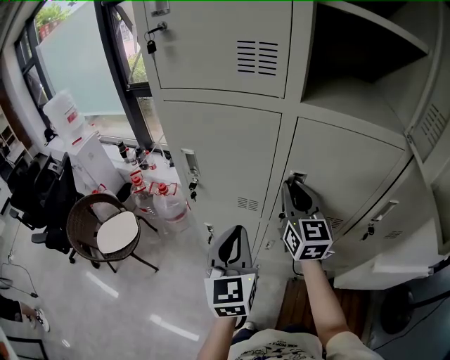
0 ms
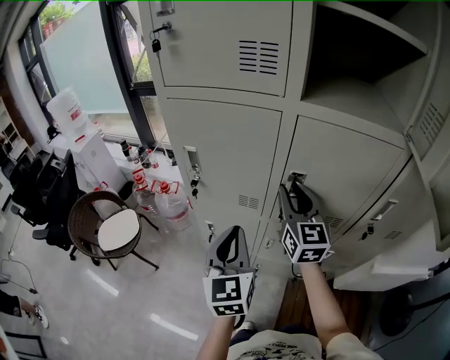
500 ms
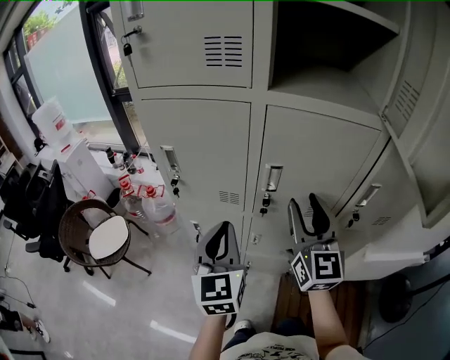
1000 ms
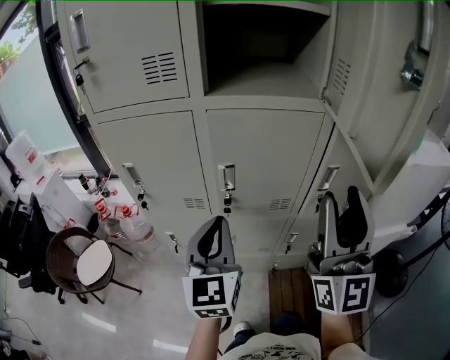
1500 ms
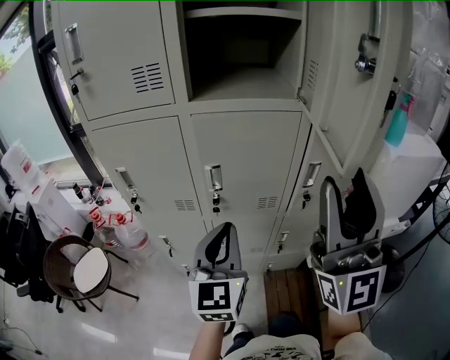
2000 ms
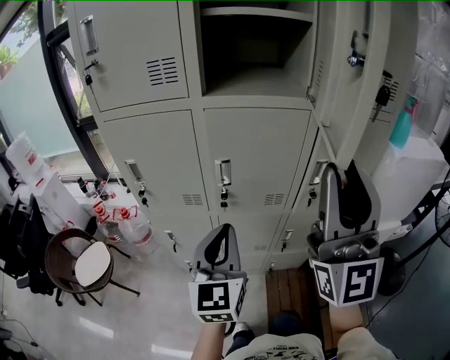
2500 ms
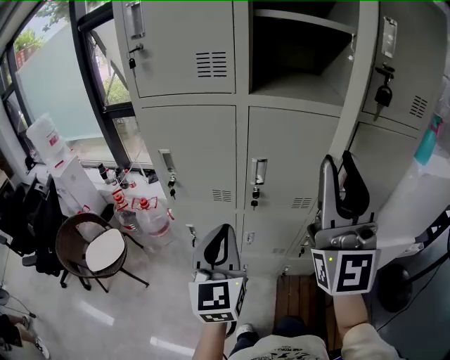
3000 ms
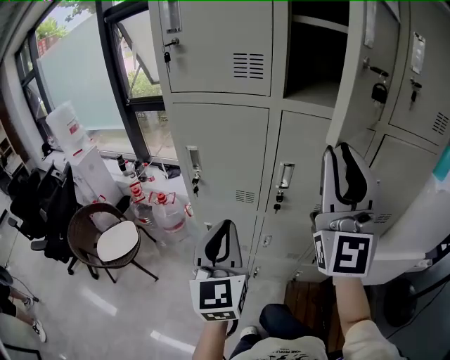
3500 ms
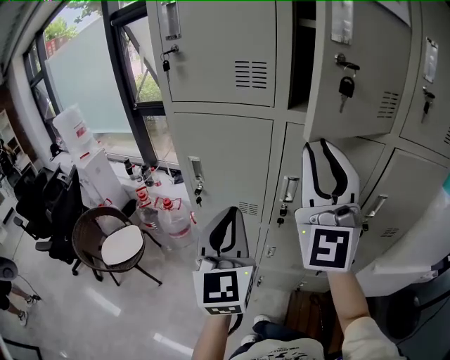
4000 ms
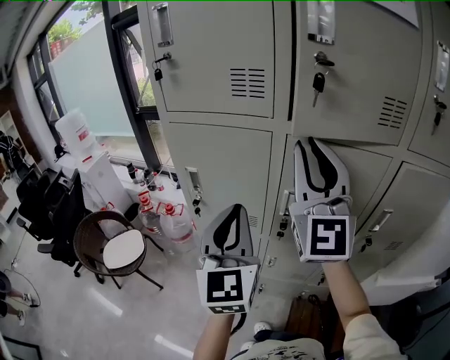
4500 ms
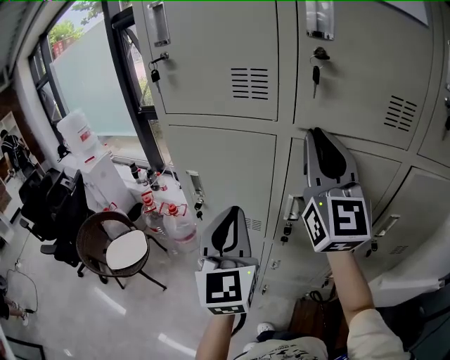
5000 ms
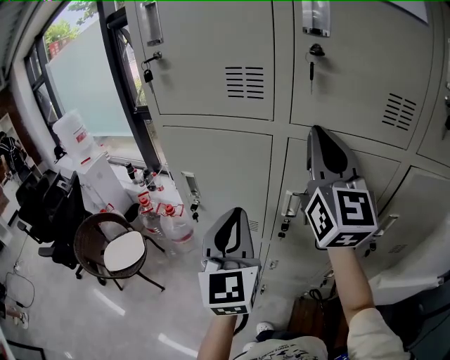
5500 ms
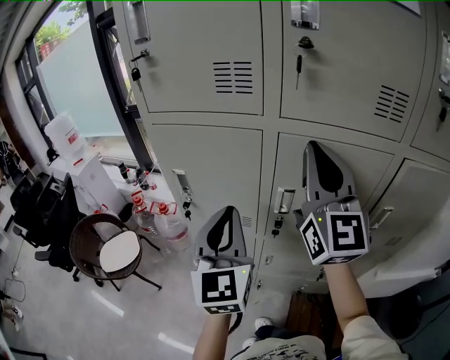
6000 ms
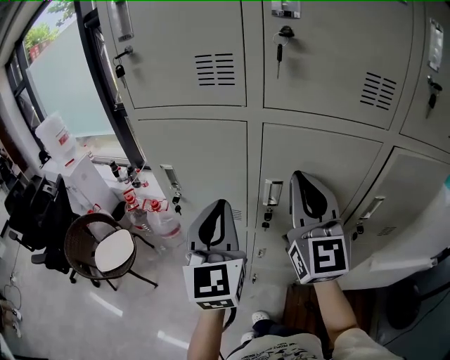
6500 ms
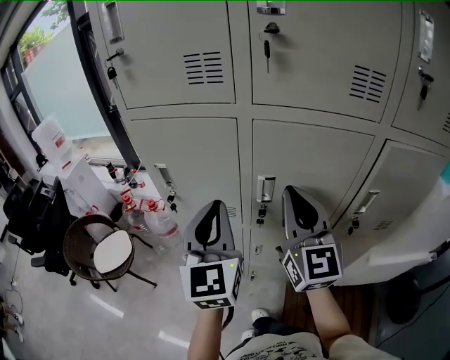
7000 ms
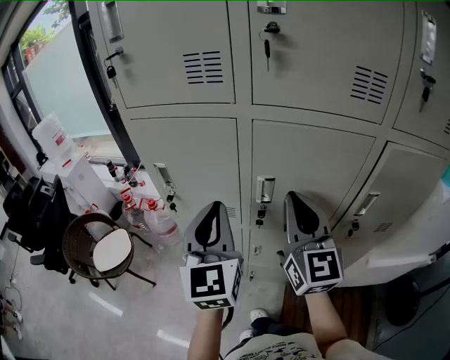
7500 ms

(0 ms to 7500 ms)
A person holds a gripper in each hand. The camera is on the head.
0 ms - 2000 ms: The left gripper is displaced to the right, backward and upward by roughly 15 cm, and swivels approximately 20 degrees. The right gripper is displaced backward, upward and to the right by about 40 cm, tilts its fingers some 40 degrees upward, and opens up.
2000 ms - 4000 ms: The right gripper travels to the left and forward by approximately 20 cm, and closes its fingers. Meanwhile the left gripper is displaced to the left by some 15 cm, and turns by some 20 degrees.
4000 ms - 5500 ms: The right gripper is displaced forward by roughly 10 cm, and changes its angle by approximately 30 degrees. The left gripper travels forward by roughly 5 cm.
5500 ms - 7500 ms: The right gripper goes about 15 cm downward and backward.

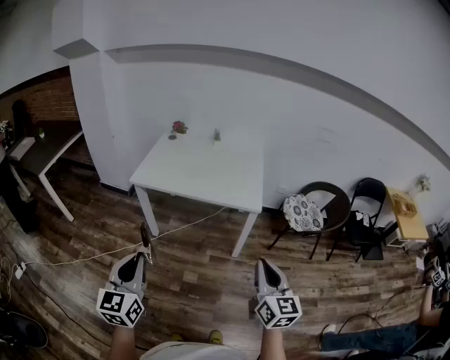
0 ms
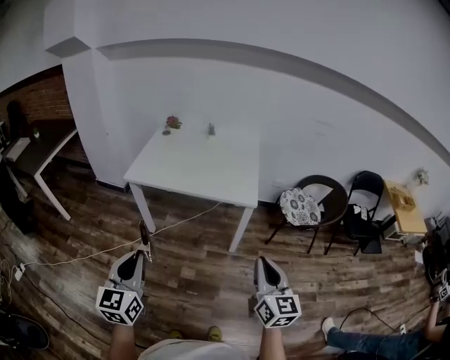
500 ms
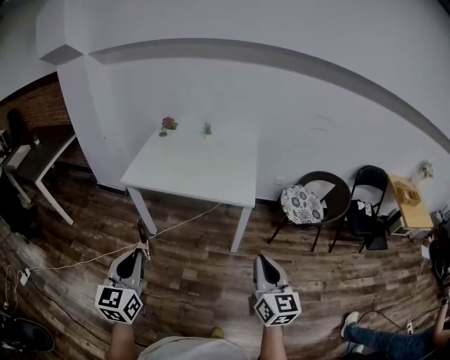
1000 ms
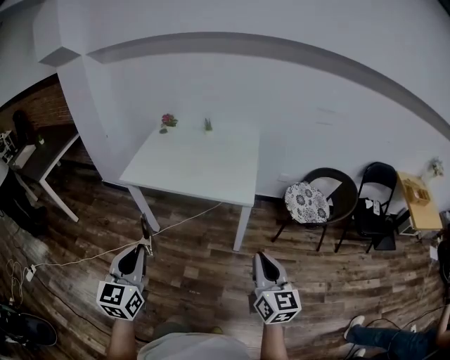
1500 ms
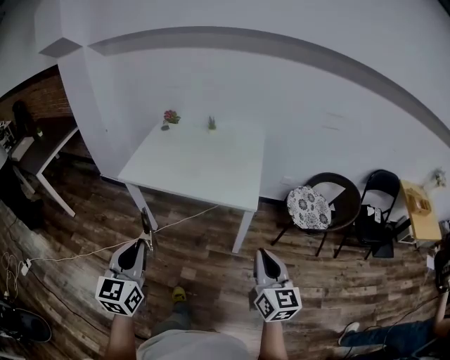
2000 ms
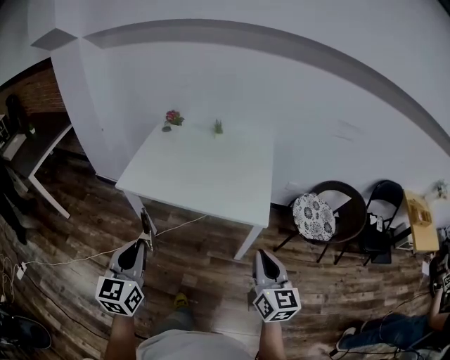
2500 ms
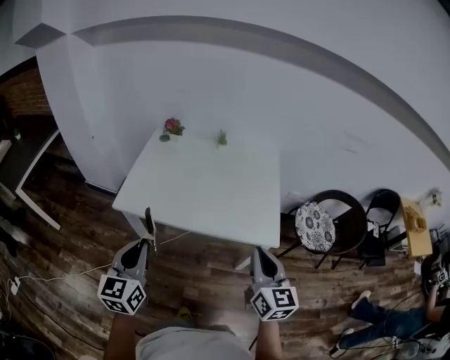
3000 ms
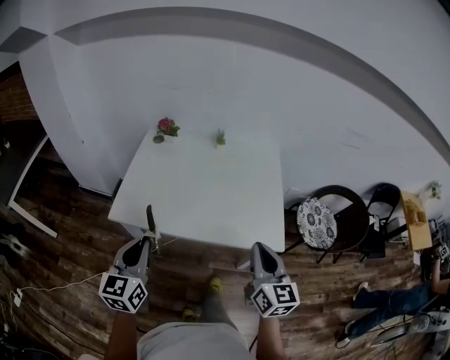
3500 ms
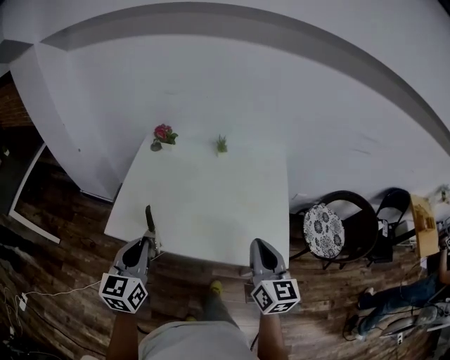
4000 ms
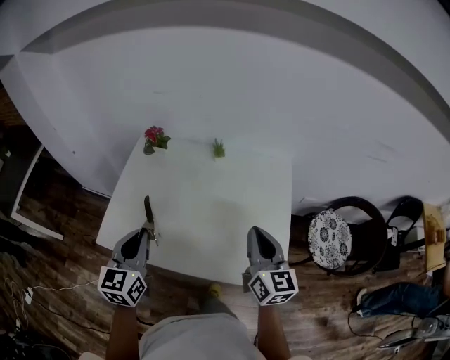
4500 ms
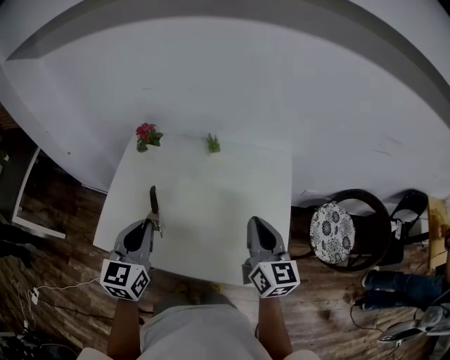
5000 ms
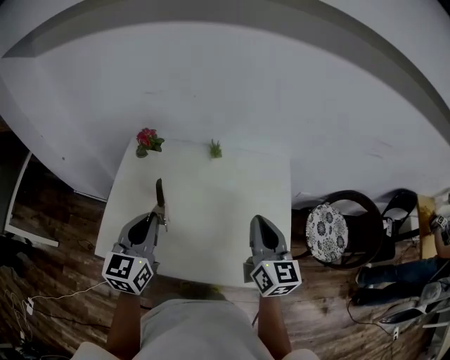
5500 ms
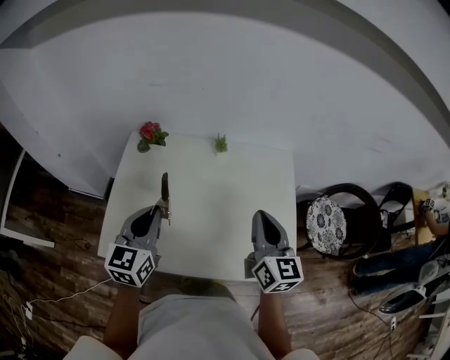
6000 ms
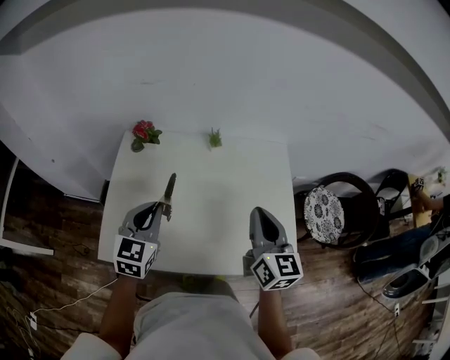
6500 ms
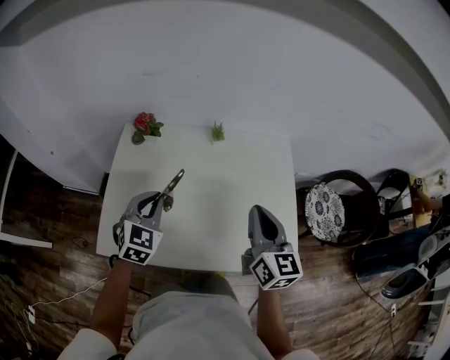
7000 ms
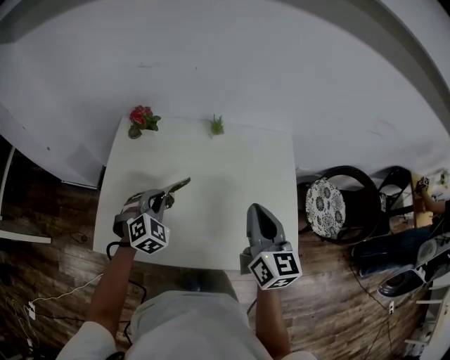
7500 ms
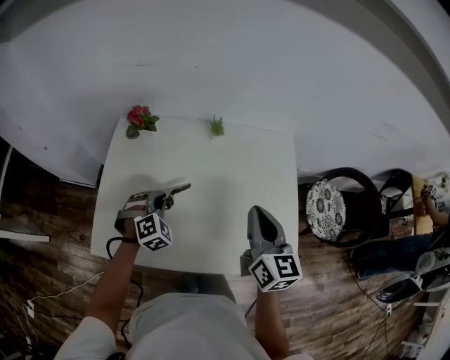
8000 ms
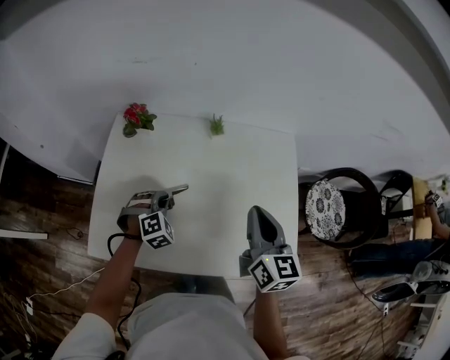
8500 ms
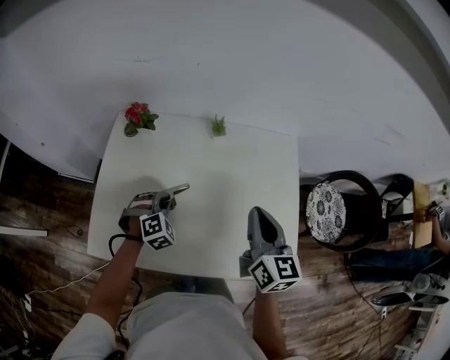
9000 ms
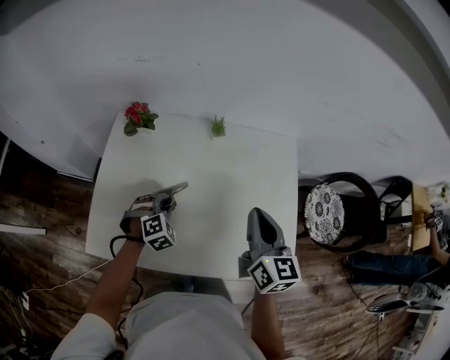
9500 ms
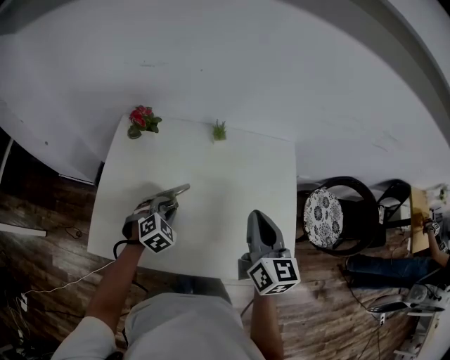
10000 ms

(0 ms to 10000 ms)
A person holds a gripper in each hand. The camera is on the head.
0 ms - 2000 ms: The two grippers go roughly 15 cm forward and to the right.
2000 ms - 4000 ms: Both grippers are carried forward, roughly 40 cm.
4000 ms - 6000 ms: The two grippers go about 20 cm forward.
6000 ms - 8000 ms: The left gripper shifts some 20 cm downward, and rotates around the line of its fingers by roughly 60 degrees, clockwise from behind.
8000 ms - 10000 ms: The left gripper opens its fingers.

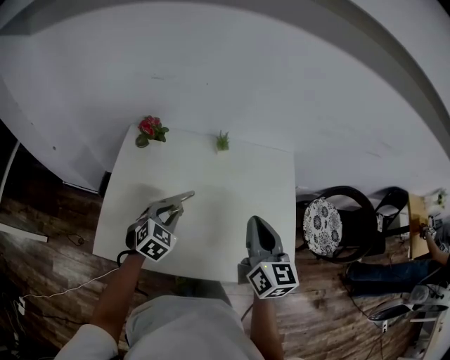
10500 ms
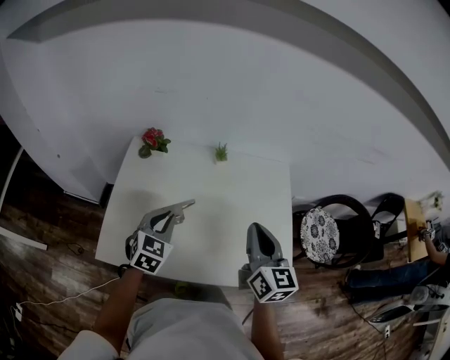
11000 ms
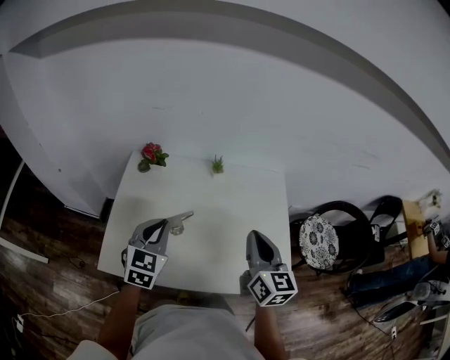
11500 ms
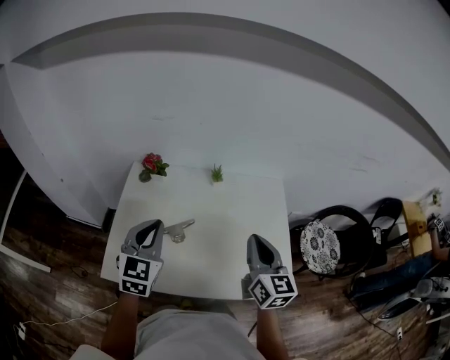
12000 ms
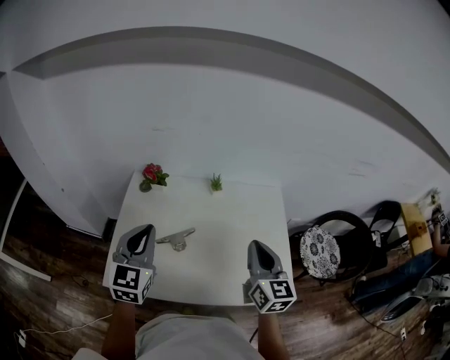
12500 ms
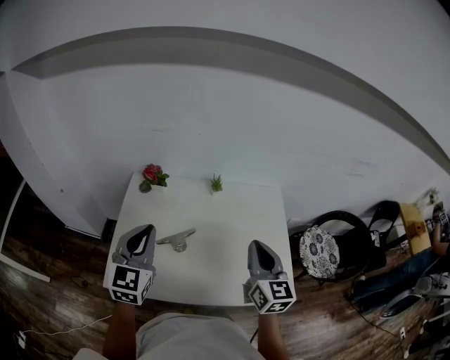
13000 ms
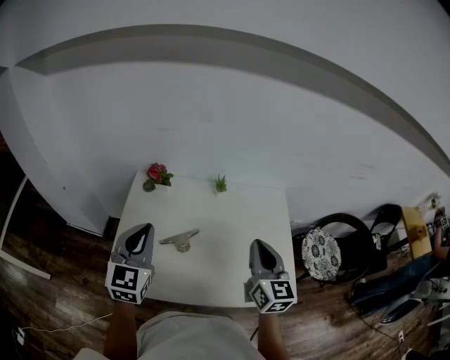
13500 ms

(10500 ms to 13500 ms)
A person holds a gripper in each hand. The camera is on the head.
10500 ms - 12000 ms: The left gripper moves upward, approximately 20 cm, and swivels approximately 30 degrees.
12000 ms - 13500 ms: The left gripper ends up roughly 5 cm from where it was.

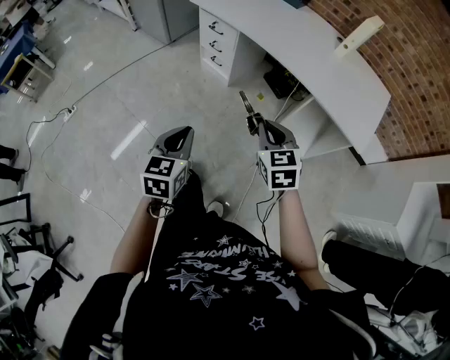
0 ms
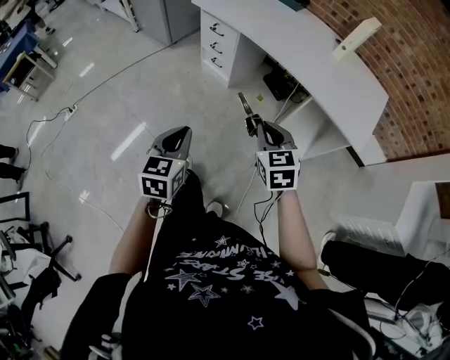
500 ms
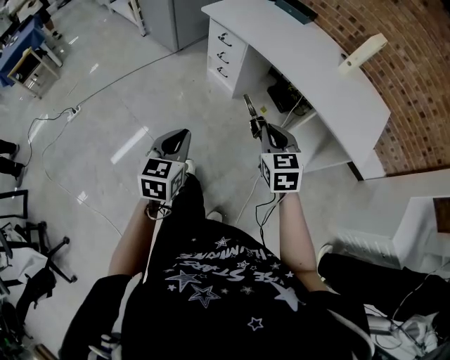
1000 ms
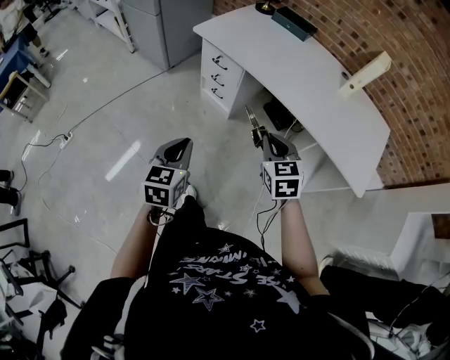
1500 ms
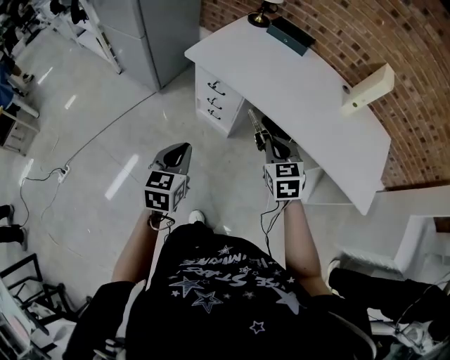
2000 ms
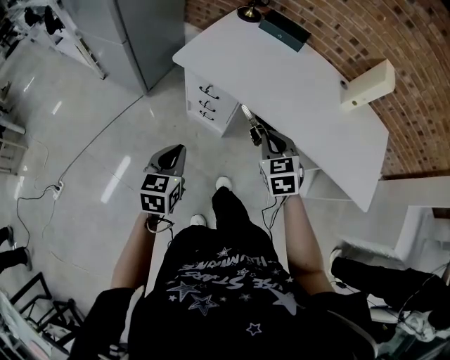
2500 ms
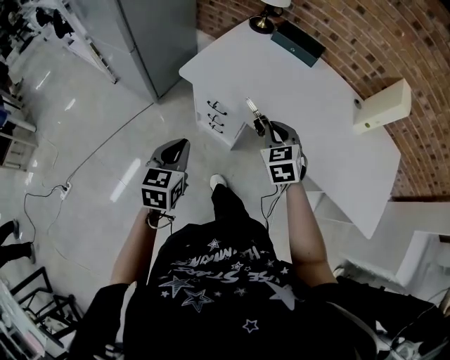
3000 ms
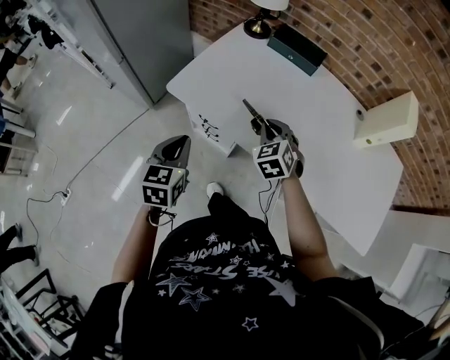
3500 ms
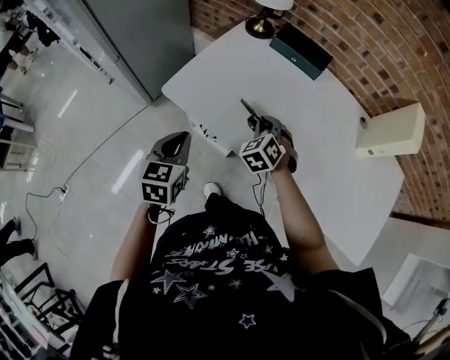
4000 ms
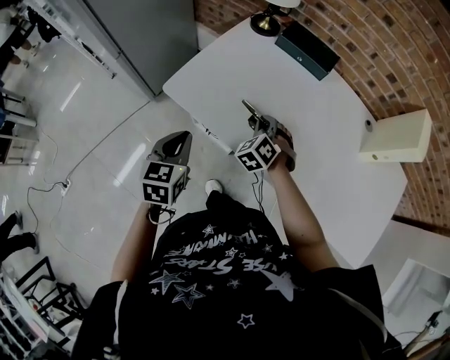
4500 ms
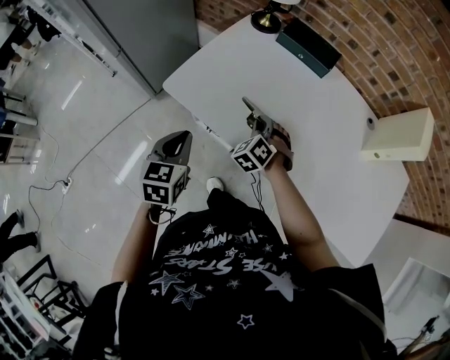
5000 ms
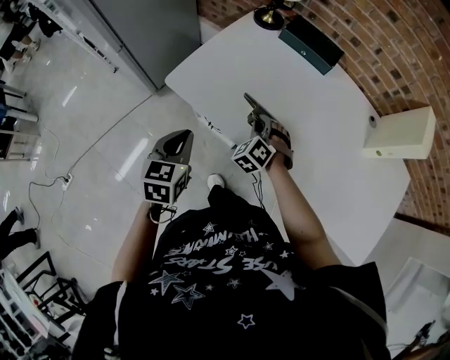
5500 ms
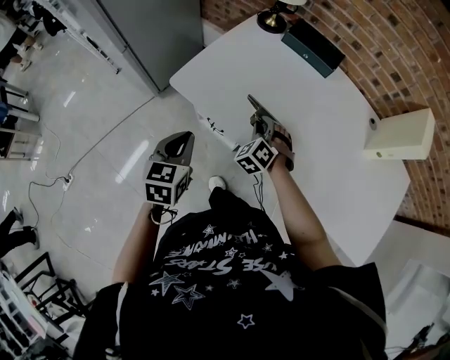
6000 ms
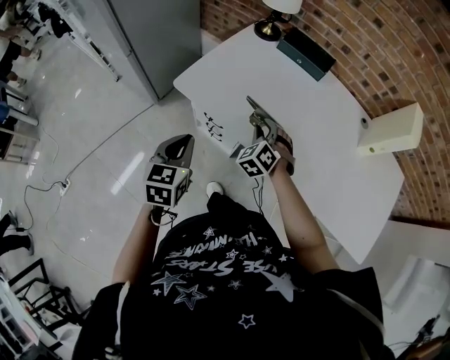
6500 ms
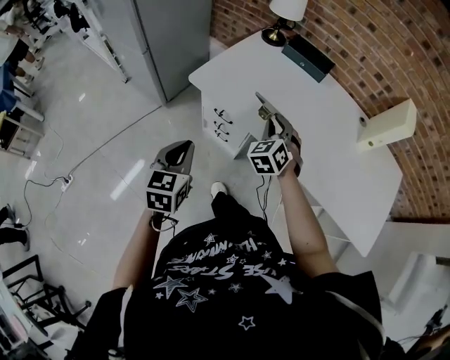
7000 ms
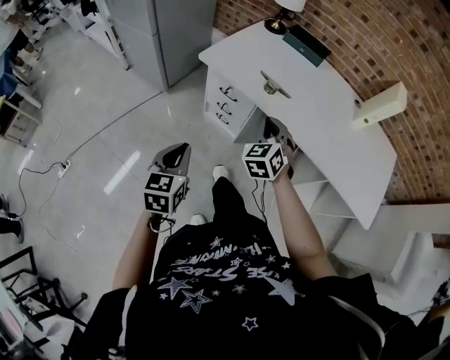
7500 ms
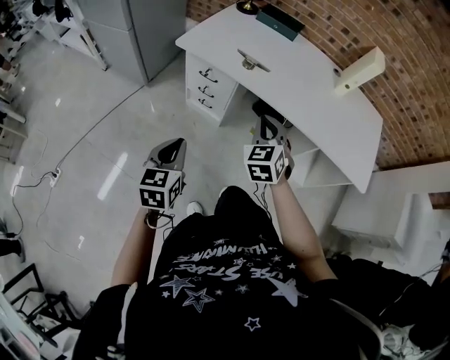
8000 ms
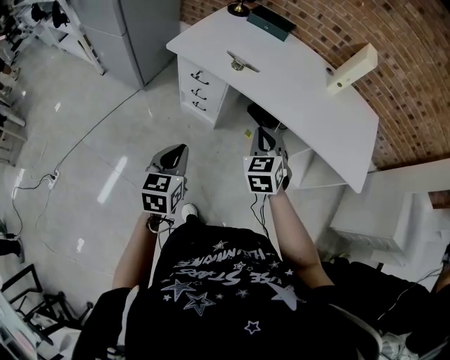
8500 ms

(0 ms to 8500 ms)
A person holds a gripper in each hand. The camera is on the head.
0 ms - 2000 ms: The right gripper shifts about 30 cm forward. The left gripper travels forward and to the left by roughly 35 cm.
2000 ms - 4000 ms: The grippers both shift forward by approximately 35 cm. The right gripper rotates approximately 30 degrees.
4000 ms - 6500 ms: The right gripper shifts by approximately 5 cm, and opens its fingers. Meanwhile the left gripper goes about 5 cm backward.
6500 ms - 8500 ms: The two grippers go some 30 cm backward. The right gripper turns by about 30 degrees, and closes.
